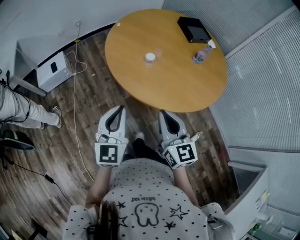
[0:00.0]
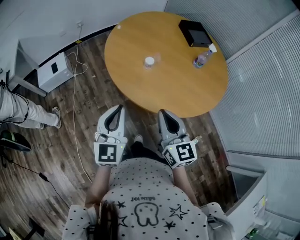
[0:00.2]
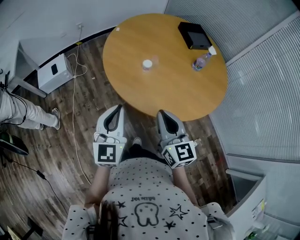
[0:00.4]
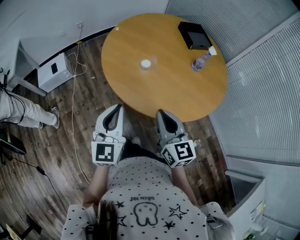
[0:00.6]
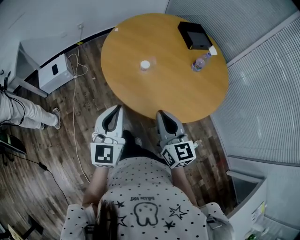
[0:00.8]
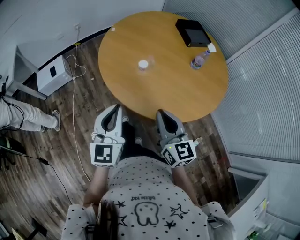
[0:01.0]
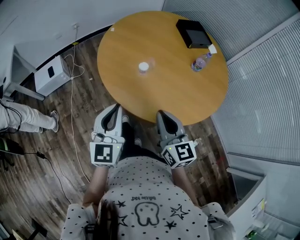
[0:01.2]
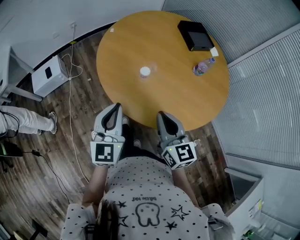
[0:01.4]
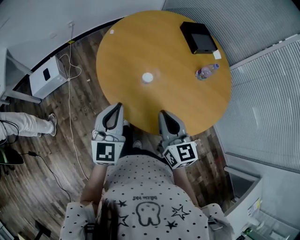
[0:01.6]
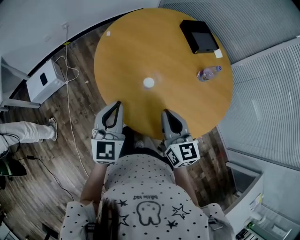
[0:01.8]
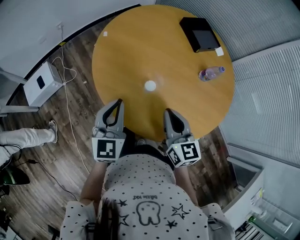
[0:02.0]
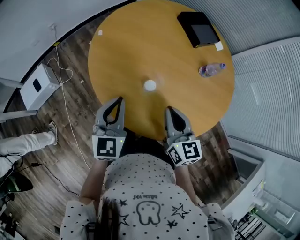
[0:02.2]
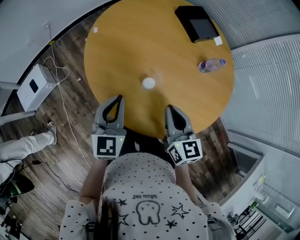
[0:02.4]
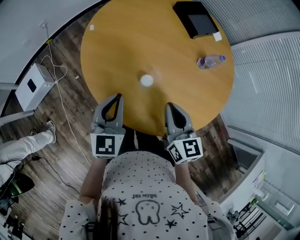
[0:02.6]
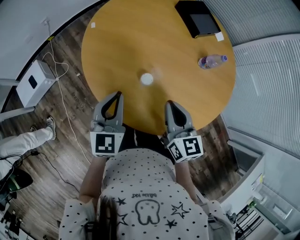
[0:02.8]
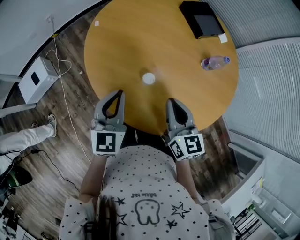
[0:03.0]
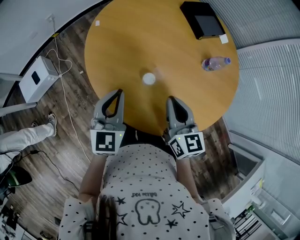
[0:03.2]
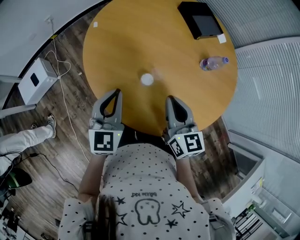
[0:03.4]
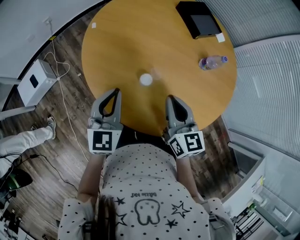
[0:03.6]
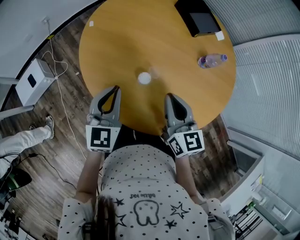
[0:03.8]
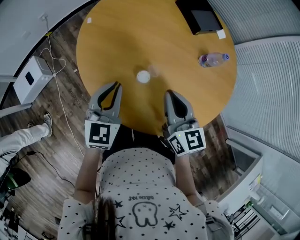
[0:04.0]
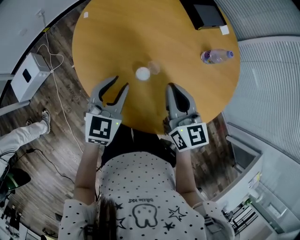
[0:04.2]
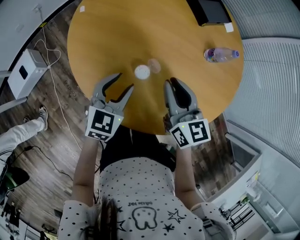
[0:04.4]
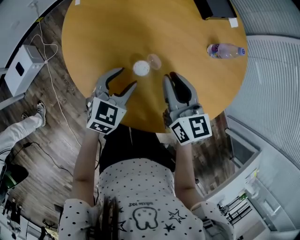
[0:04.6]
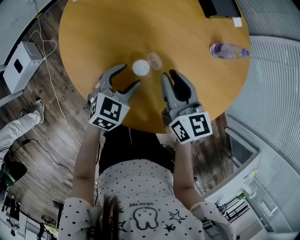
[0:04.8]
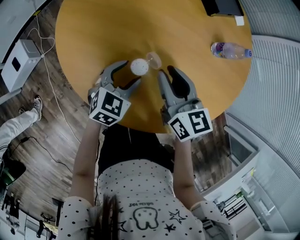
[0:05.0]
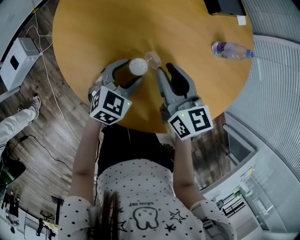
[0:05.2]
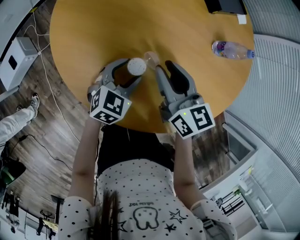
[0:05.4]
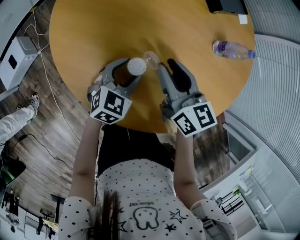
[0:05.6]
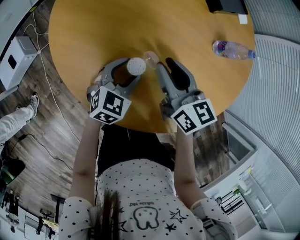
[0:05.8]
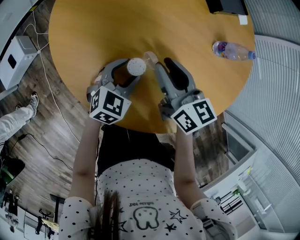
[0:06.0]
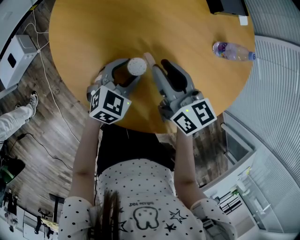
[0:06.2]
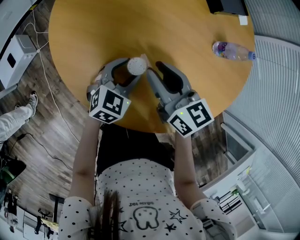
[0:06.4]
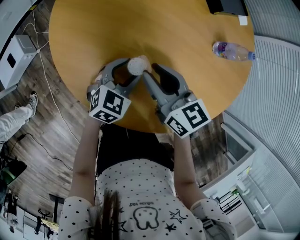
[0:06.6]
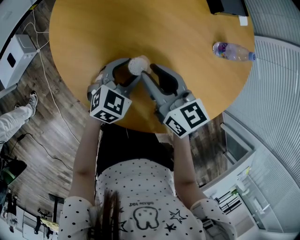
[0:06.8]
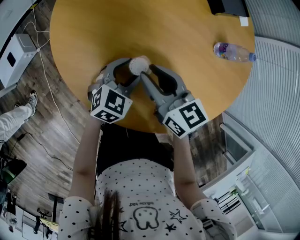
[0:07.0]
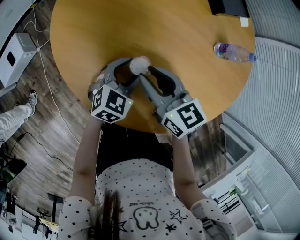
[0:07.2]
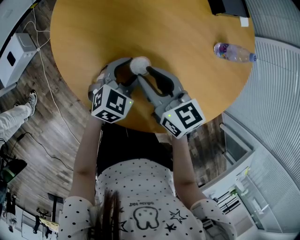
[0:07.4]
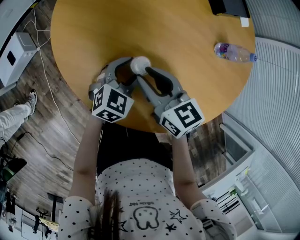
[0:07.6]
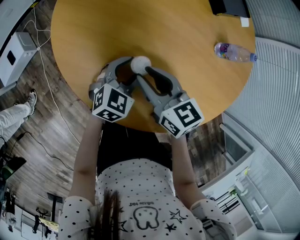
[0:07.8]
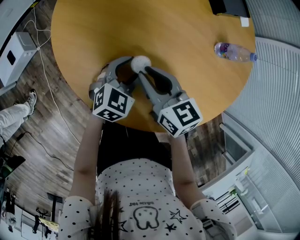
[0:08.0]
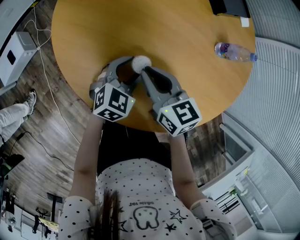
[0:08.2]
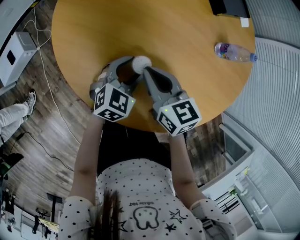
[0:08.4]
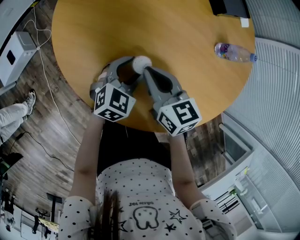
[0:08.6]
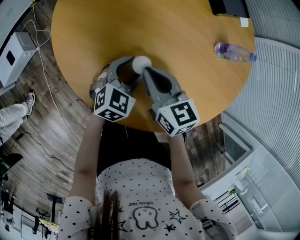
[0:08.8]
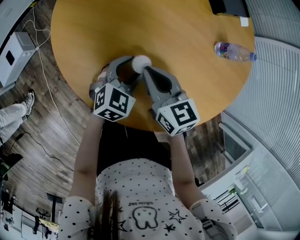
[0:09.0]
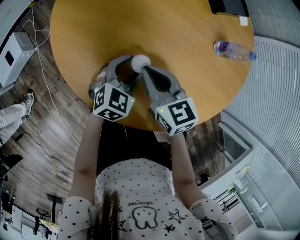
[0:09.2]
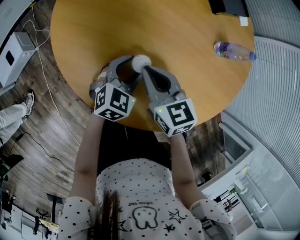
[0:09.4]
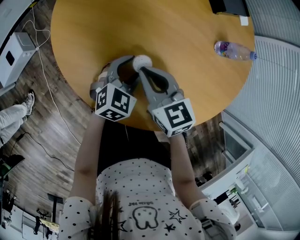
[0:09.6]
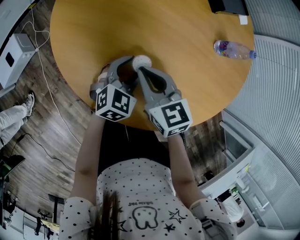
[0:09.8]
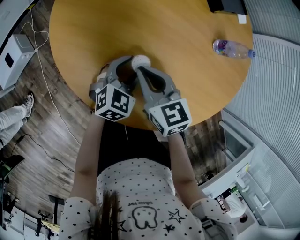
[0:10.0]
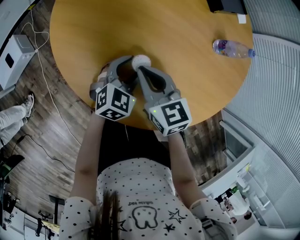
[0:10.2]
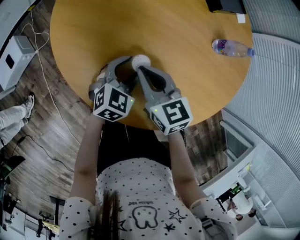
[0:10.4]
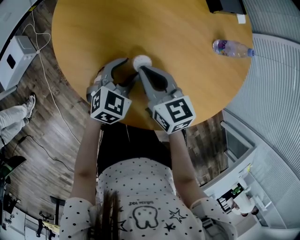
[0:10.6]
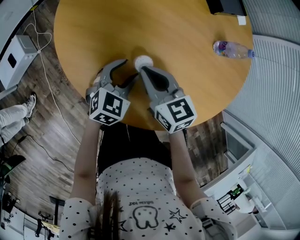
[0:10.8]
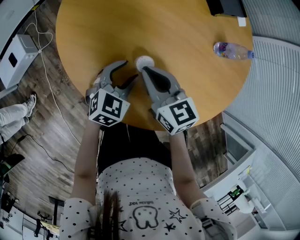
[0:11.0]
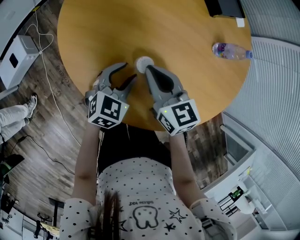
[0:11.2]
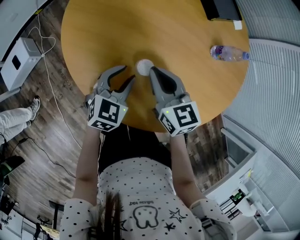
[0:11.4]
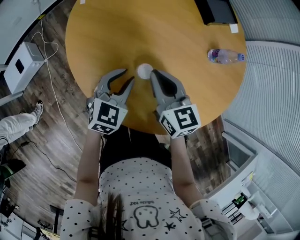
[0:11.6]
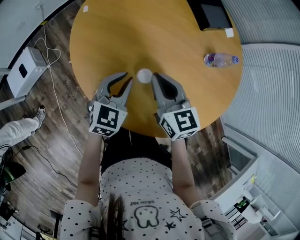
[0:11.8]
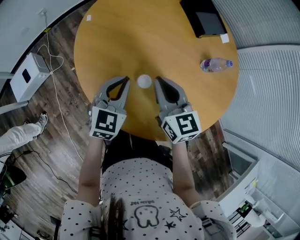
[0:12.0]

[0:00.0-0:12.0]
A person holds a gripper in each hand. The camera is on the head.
0:00.0 to 0:01.6: The two grippers go approximately 20 cm forward.
0:01.6 to 0:03.0: Both grippers move forward, some 15 cm.
0:03.0 to 0:04.4: The right gripper moves forward, approximately 5 cm. Meanwhile the left gripper moves downward and to the right, approximately 10 cm, swivels about 20 degrees, and opens its fingers.
0:04.4 to 0:06.0: The right gripper heads downward and forward, covering approximately 10 cm. Meanwhile the left gripper heads downward and to the right, covering approximately 10 cm.
0:06.0 to 0:07.6: The right gripper shifts approximately 5 cm to the left.
0:07.6 to 0:09.0: The right gripper closes.
0:09.0 to 0:10.4: The grippers make only small movements.
0:10.4 to 0:12.0: The right gripper travels upward by about 10 cm, while the left gripper is displaced upward and to the left by roughly 15 cm, changes its angle by approximately 20 degrees, and closes up.

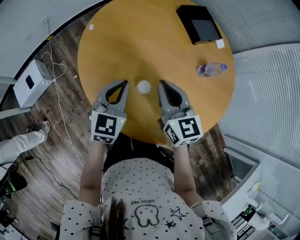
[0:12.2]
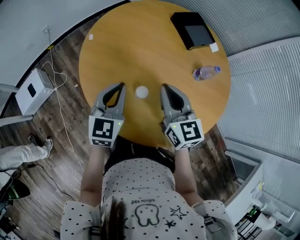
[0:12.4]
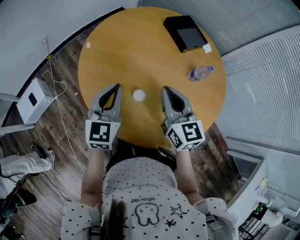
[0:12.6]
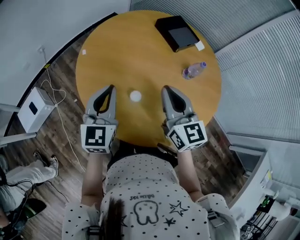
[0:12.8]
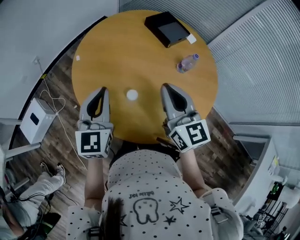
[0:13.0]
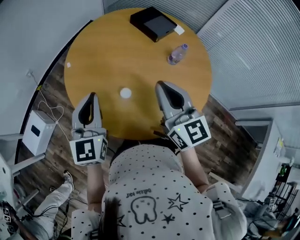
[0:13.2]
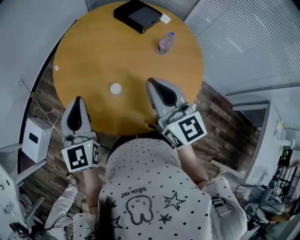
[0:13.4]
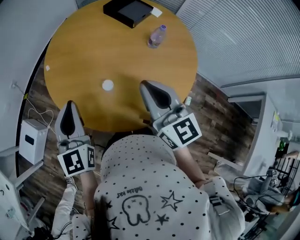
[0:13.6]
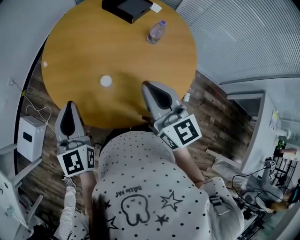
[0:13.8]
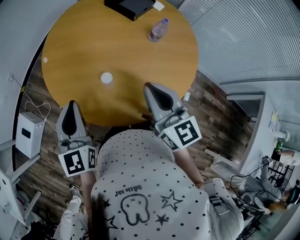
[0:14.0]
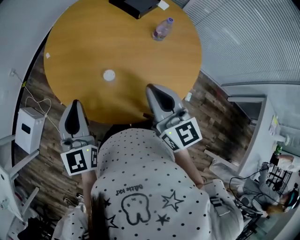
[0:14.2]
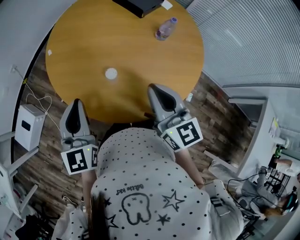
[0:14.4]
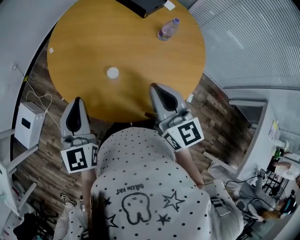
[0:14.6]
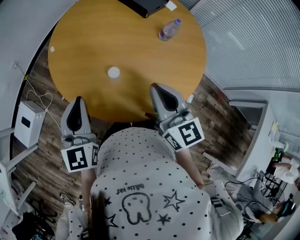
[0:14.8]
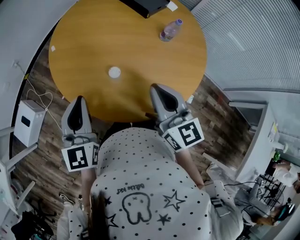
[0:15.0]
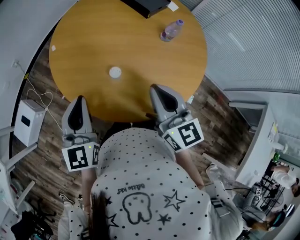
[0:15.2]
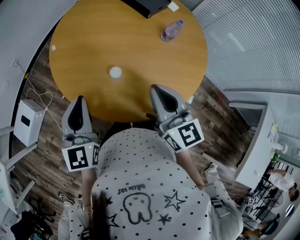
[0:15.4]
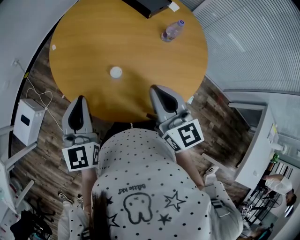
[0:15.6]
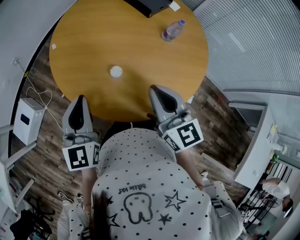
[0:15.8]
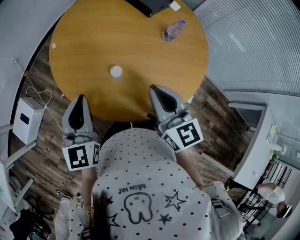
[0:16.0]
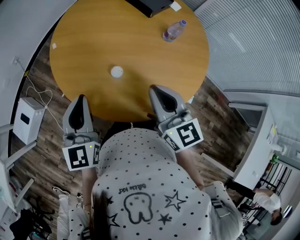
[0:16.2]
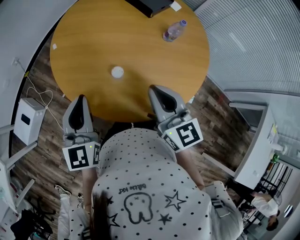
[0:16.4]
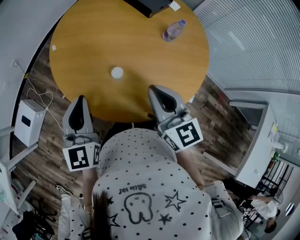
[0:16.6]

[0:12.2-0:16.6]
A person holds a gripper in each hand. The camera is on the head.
0:12.2 to 0:13.6: The left gripper moves upward, roughly 15 cm, while the right gripper heads upward, backward and to the right, covering about 20 cm, and changes its angle by about 20 degrees.
0:13.6 to 0:15.2: The right gripper ends up some 5 cm from where it was.
0:15.2 to 0:16.6: The grippers stay close to where they were, moving slightly.

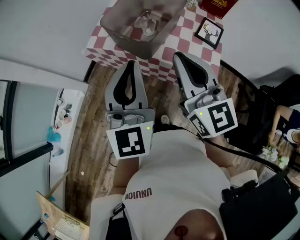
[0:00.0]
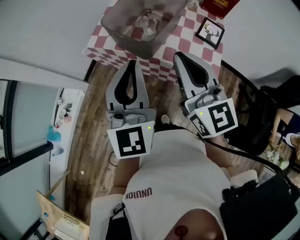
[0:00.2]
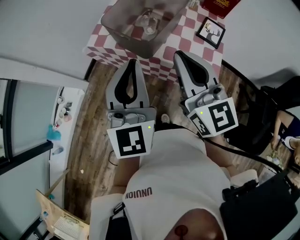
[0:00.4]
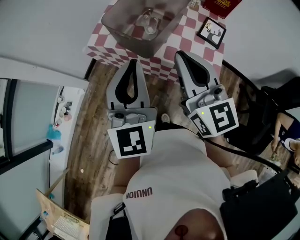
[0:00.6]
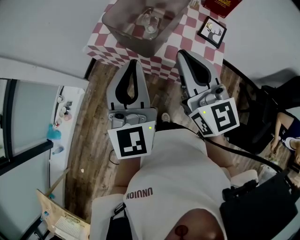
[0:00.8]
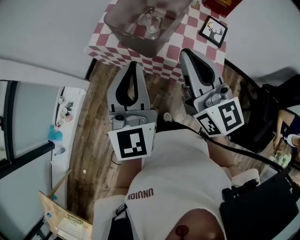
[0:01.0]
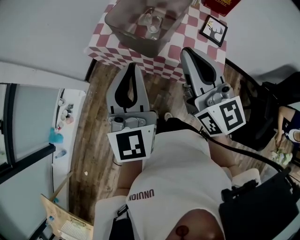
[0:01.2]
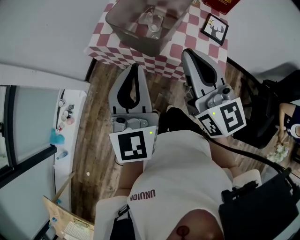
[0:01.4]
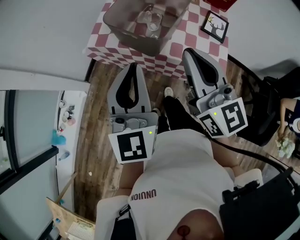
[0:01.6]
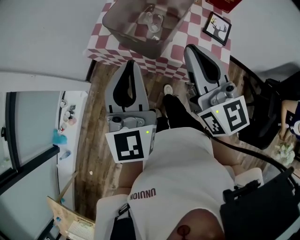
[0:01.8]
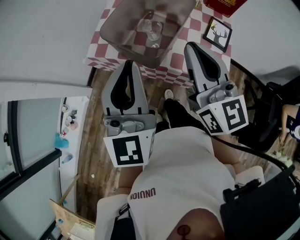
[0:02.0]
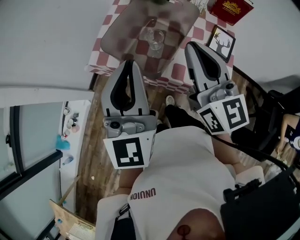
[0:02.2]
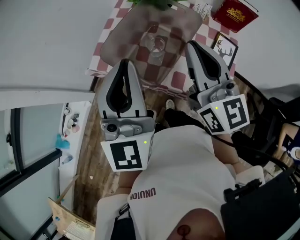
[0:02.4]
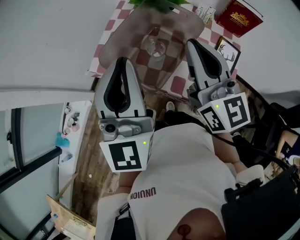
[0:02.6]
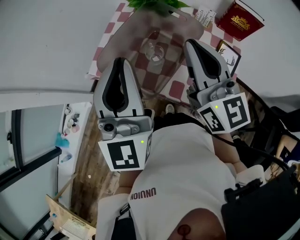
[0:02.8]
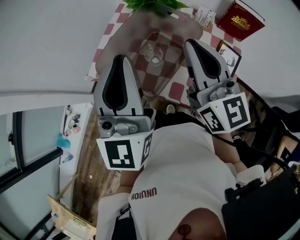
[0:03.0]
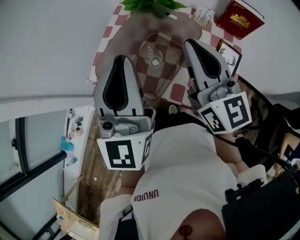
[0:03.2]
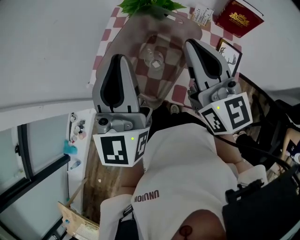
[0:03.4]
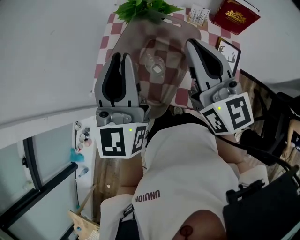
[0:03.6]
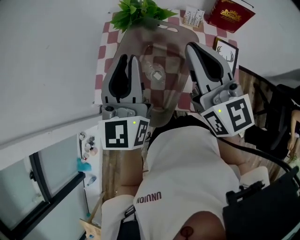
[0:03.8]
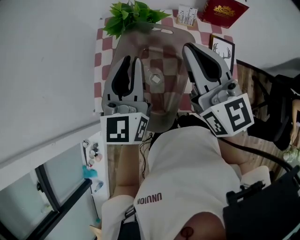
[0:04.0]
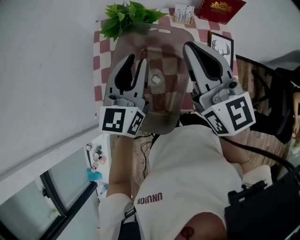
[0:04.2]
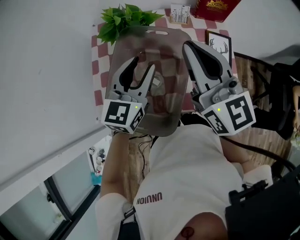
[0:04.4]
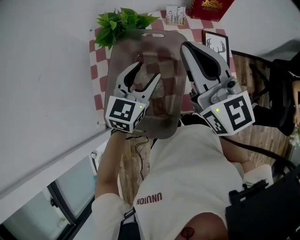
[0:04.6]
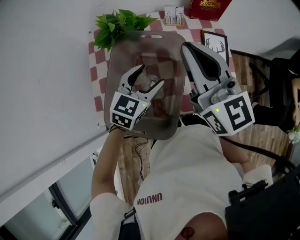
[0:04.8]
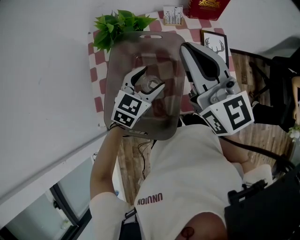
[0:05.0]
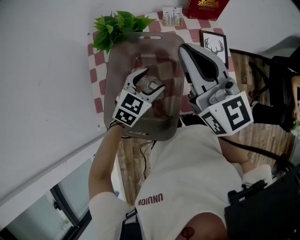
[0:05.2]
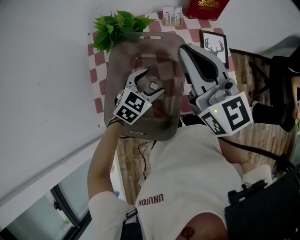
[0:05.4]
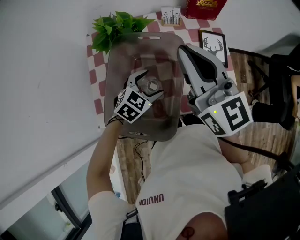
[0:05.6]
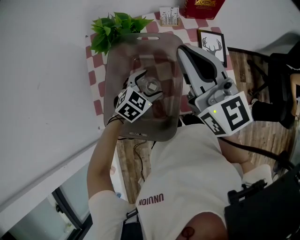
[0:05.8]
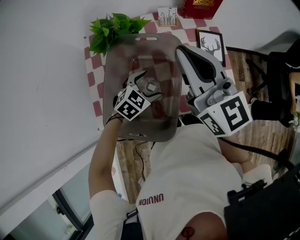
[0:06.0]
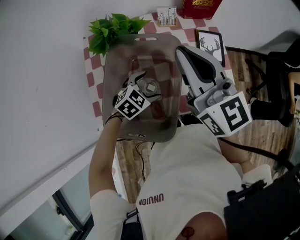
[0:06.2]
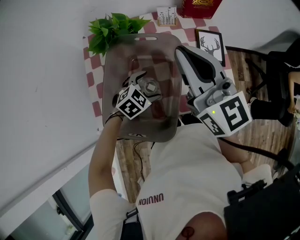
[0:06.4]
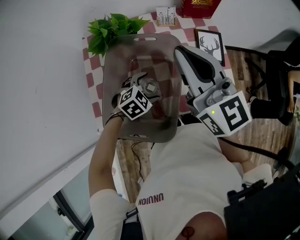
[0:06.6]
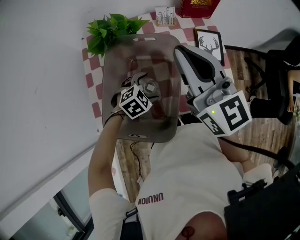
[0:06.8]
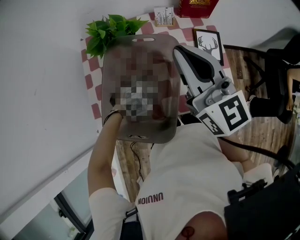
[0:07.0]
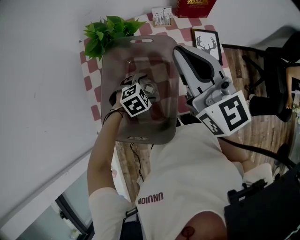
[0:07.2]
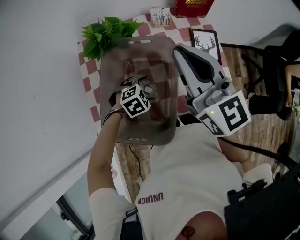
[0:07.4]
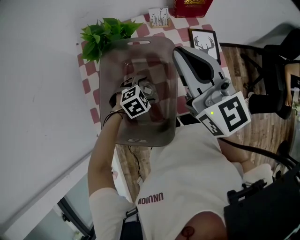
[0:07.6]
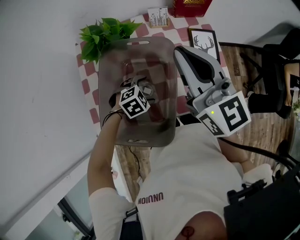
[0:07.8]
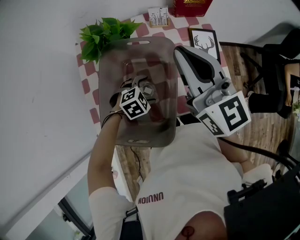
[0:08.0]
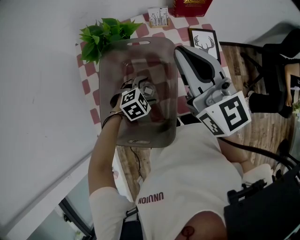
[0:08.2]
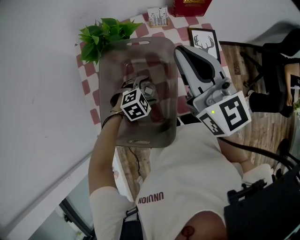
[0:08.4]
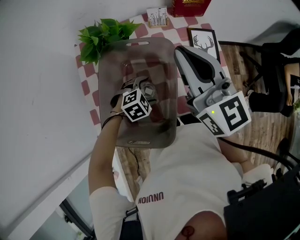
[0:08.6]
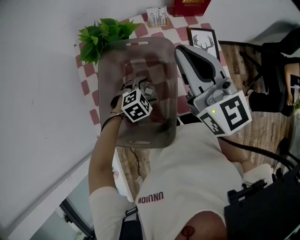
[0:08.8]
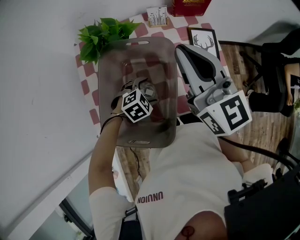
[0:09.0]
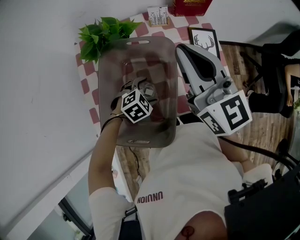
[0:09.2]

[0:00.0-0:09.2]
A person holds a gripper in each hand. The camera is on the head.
0:00.0 to 0:01.6: There are only small adjustments of the grippers.
0:01.6 to 0:03.0: The left gripper goes about 20 cm forward, to the right and upward; the right gripper travels forward and to the right by approximately 20 cm.
0:03.0 to 0:04.6: The left gripper goes about 20 cm downward, points its fingers roughly 40 degrees further downward, and opens, while the right gripper shifts by roughly 5 cm, and swivels roughly 20 degrees.
0:04.6 to 0:06.2: The left gripper is displaced downward by roughly 15 cm, points its fingers some 30 degrees further downward, and opens its fingers.
0:06.2 to 0:07.6: The left gripper rotates approximately 20 degrees.
0:07.6 to 0:09.2: The grippers stay close to where they were, moving slightly.
